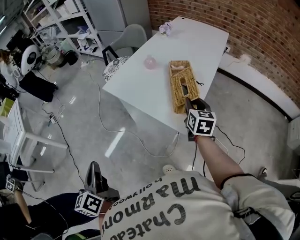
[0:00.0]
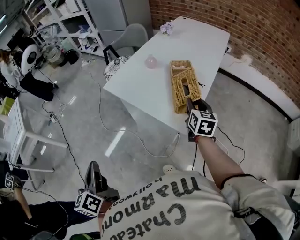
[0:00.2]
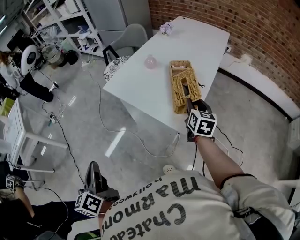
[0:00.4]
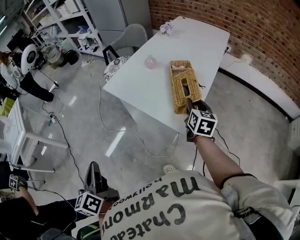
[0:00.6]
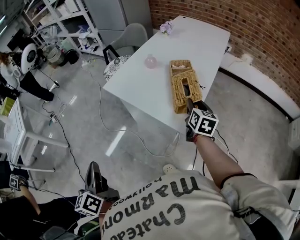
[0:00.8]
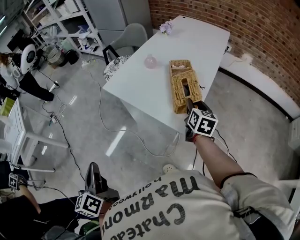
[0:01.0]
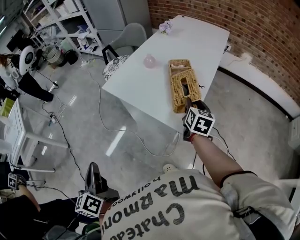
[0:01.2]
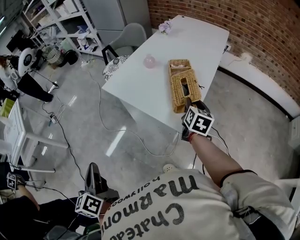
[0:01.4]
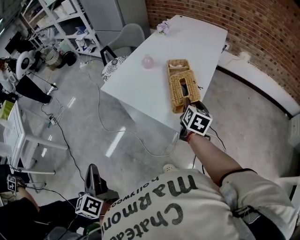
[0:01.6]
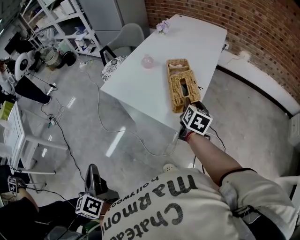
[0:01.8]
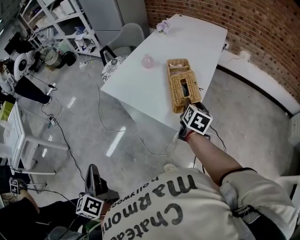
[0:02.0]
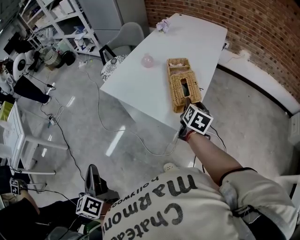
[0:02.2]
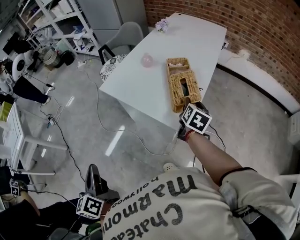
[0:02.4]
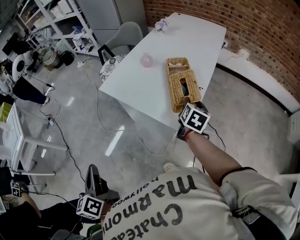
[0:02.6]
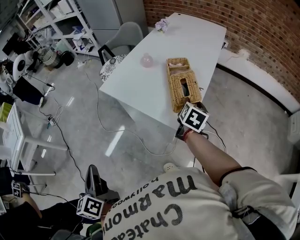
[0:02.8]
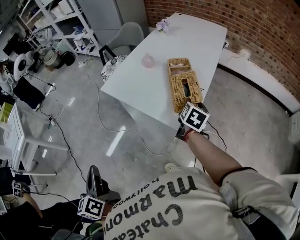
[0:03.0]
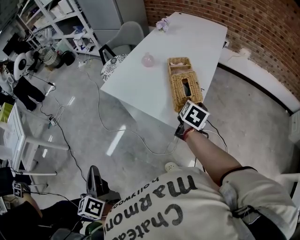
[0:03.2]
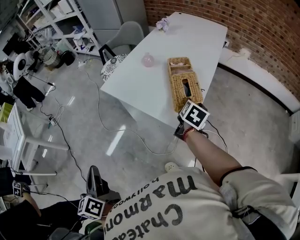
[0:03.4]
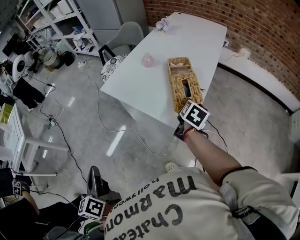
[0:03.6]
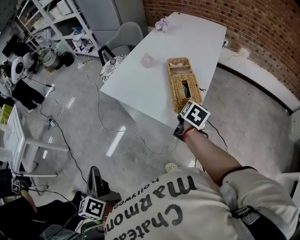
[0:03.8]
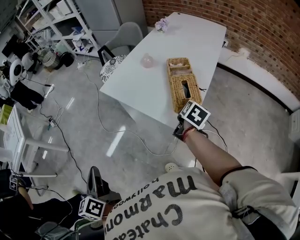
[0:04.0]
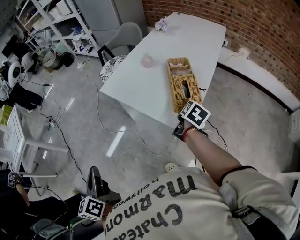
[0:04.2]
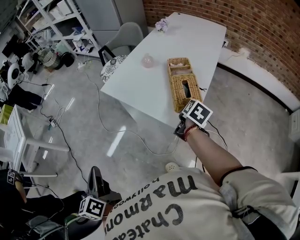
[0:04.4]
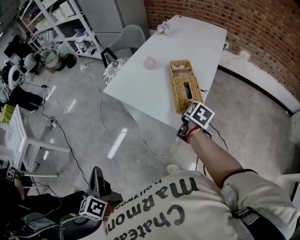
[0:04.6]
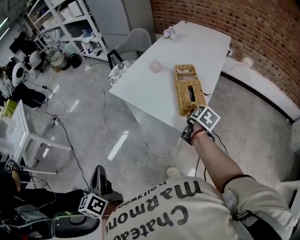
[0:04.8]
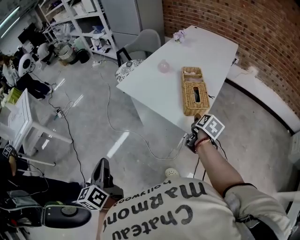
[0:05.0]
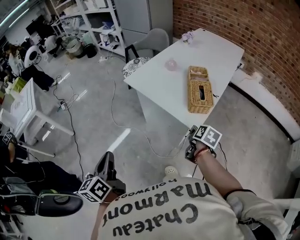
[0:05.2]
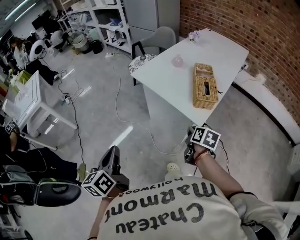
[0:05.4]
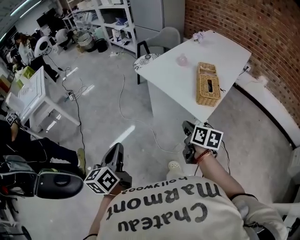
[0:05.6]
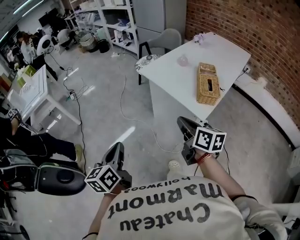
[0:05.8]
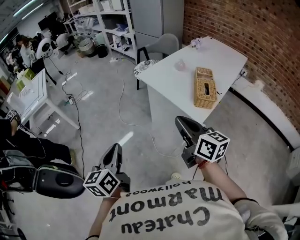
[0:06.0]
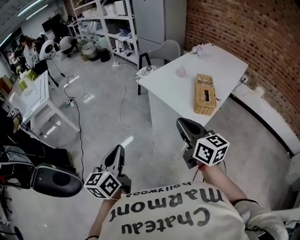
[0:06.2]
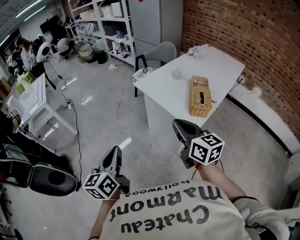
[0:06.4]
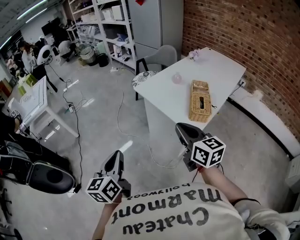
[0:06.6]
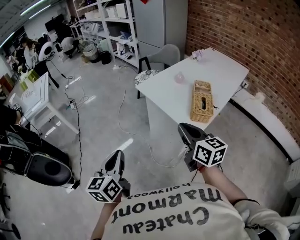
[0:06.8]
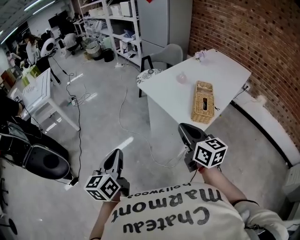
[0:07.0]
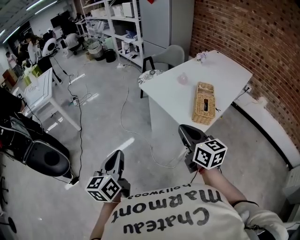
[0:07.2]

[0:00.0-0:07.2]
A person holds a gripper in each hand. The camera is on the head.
0:00.0 to 0:01.4: There are only small adjustments of the grippers.
0:01.4 to 0:02.8: The grippers move only a little.
0:02.8 to 0:04.4: There are only small adjustments of the grippers.
0:04.4 to 0:05.8: The right gripper shifts by approximately 35 cm, swivels about 60 degrees, and closes its fingers. Meanwhile the left gripper ends up some 15 cm from where it was.
0:05.8 to 0:07.2: The left gripper moves some 5 cm, while the right gripper is displaced upward by approximately 5 cm, and swivels some 20 degrees.

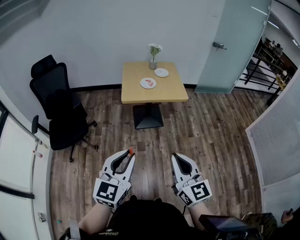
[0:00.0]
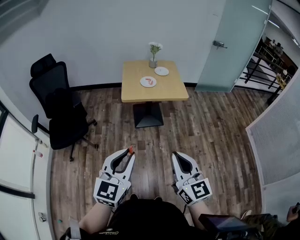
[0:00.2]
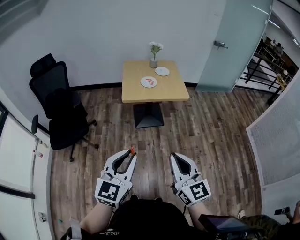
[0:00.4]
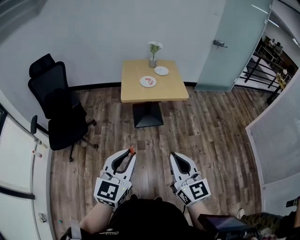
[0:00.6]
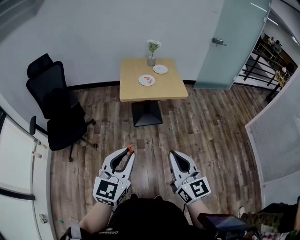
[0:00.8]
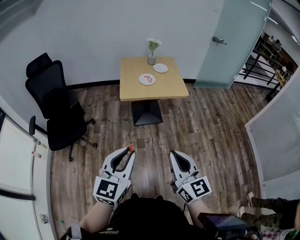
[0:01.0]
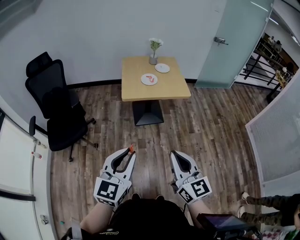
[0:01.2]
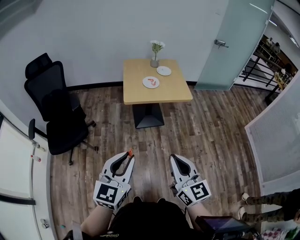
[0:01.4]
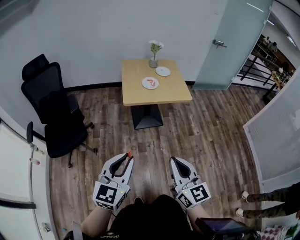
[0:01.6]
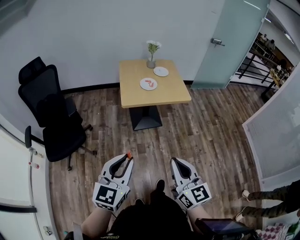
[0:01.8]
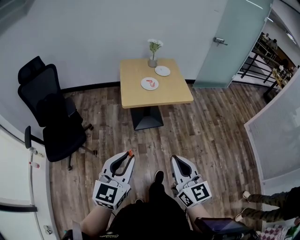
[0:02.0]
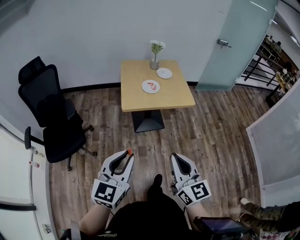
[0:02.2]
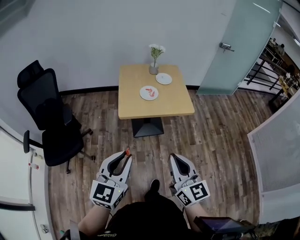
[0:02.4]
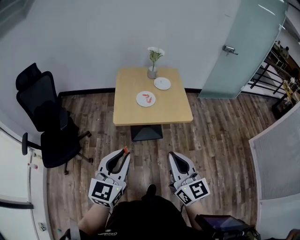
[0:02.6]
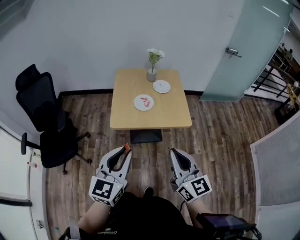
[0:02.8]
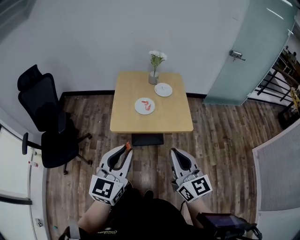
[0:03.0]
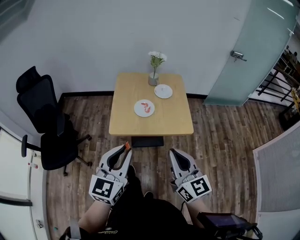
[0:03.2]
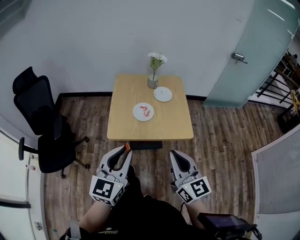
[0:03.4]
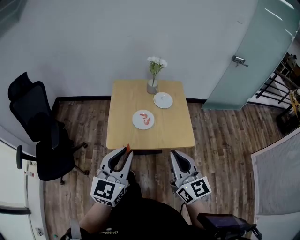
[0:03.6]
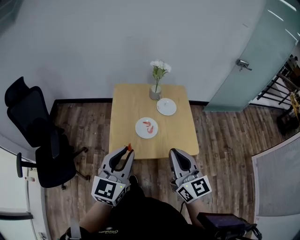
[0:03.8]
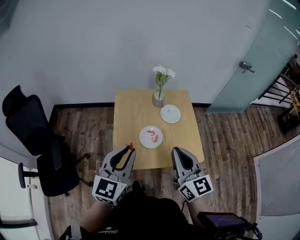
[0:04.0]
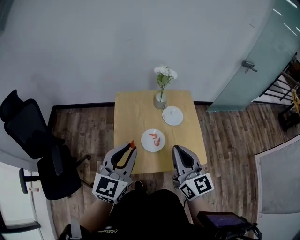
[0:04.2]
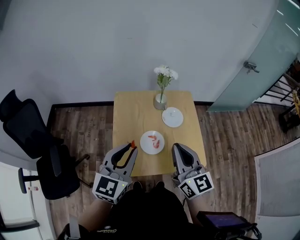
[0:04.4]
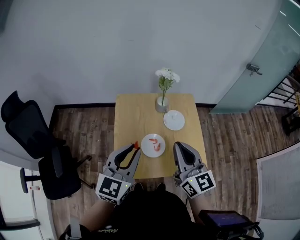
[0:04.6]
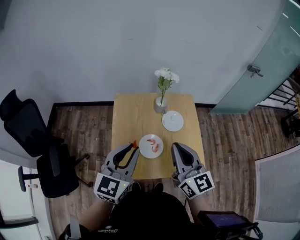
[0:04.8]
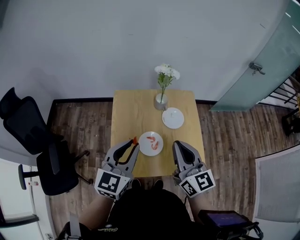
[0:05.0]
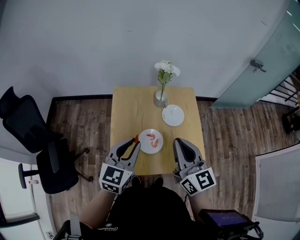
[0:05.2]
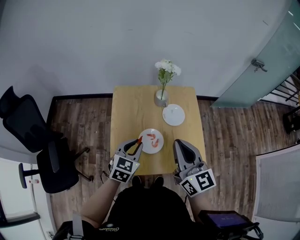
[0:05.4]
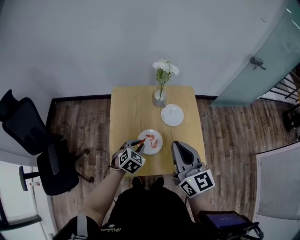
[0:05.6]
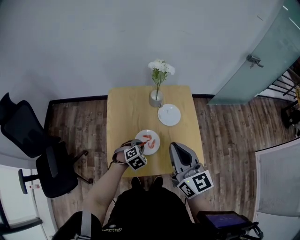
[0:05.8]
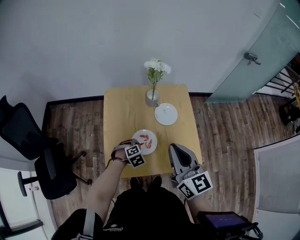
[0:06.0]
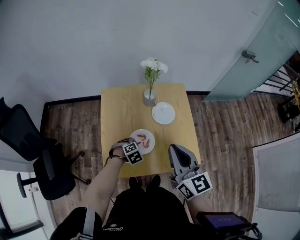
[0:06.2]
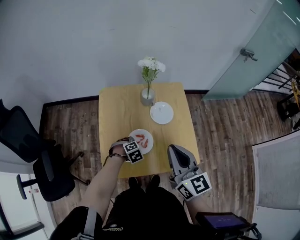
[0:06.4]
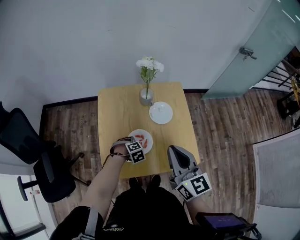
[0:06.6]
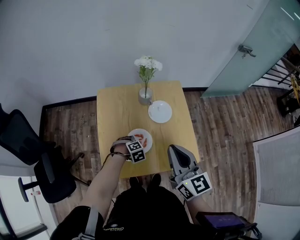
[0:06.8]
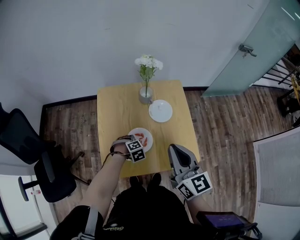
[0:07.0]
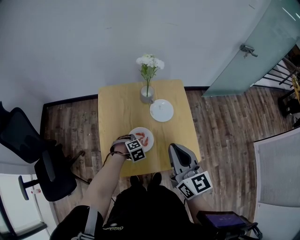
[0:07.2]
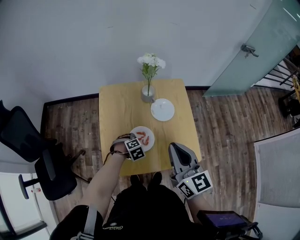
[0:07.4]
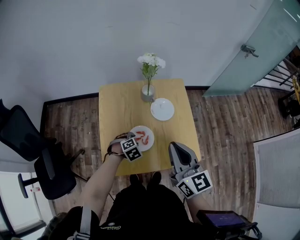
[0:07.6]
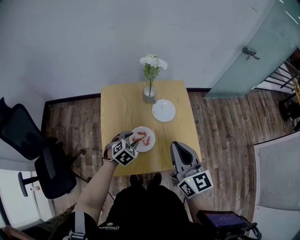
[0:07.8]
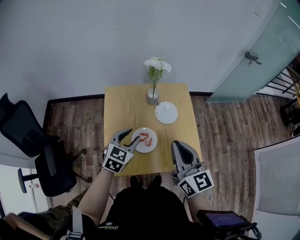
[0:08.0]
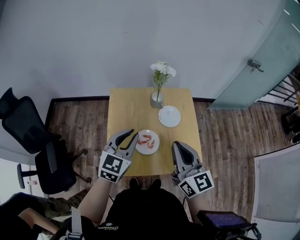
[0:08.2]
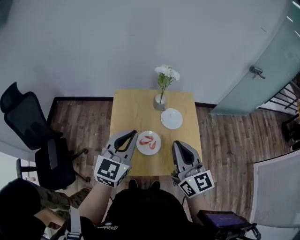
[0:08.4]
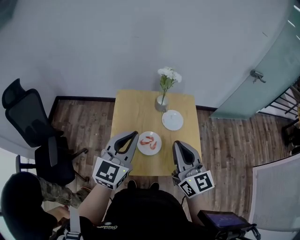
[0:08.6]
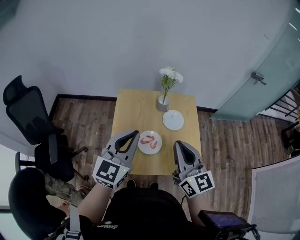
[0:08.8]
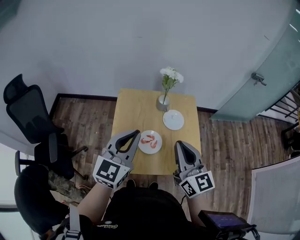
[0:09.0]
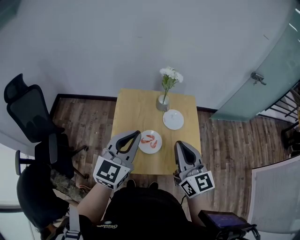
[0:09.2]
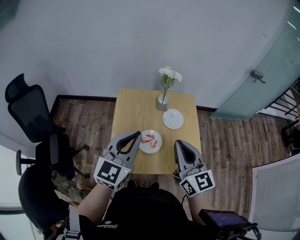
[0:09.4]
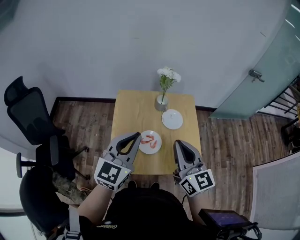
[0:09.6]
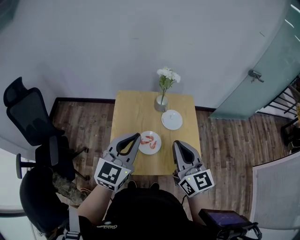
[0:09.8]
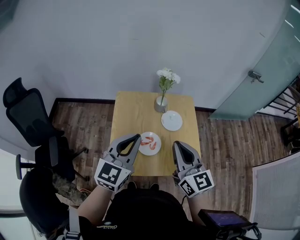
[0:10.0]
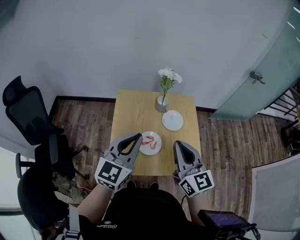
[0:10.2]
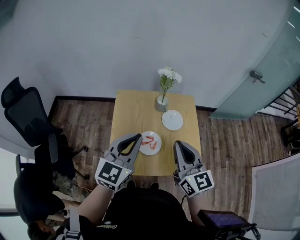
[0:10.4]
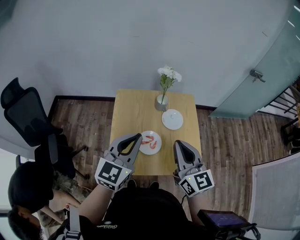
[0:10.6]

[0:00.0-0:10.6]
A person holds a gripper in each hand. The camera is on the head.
0:00.0 to 0:01.6: The two grippers go roughly 10 cm to the left and forward.
0:01.6 to 0:03.0: The two grippers go approximately 30 cm forward and to the right.
0:03.0 to 0:04.6: The two grippers go some 35 cm forward.
0:04.6 to 0:06.0: The left gripper heads downward, covering approximately 35 cm, and angles its fingers downward, by about 60 degrees.
0:06.0 to 0:07.6: The left gripper opens.
0:07.6 to 0:09.0: The left gripper shifts some 40 cm upward, points its fingers about 70 degrees further upward, and closes up. The right gripper changes place by about 5 cm.
0:09.0 to 0:10.6: The grippers stay close to where they were, moving slightly.

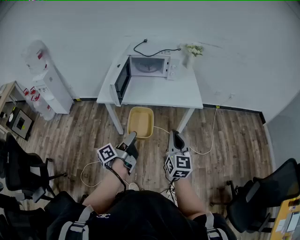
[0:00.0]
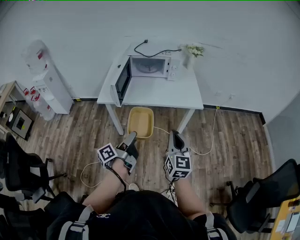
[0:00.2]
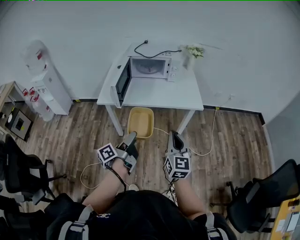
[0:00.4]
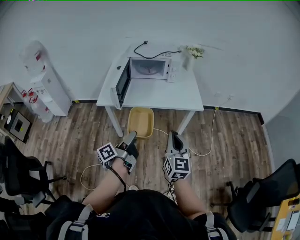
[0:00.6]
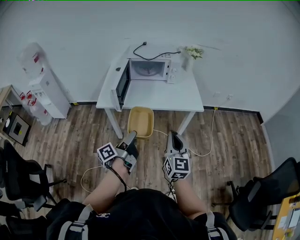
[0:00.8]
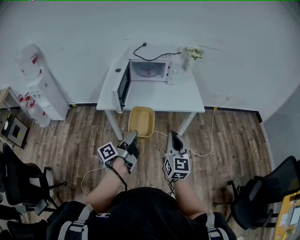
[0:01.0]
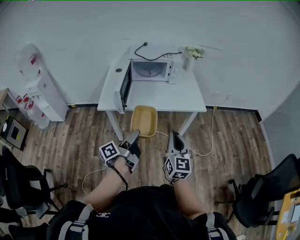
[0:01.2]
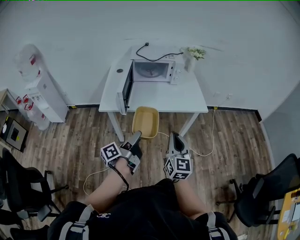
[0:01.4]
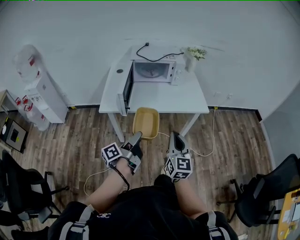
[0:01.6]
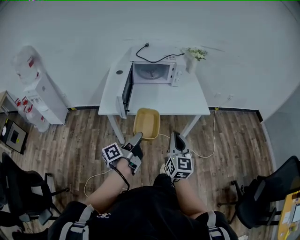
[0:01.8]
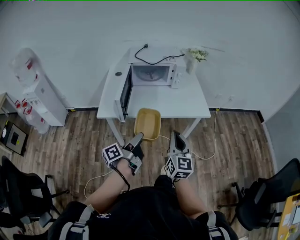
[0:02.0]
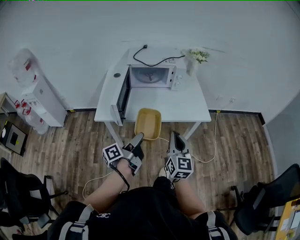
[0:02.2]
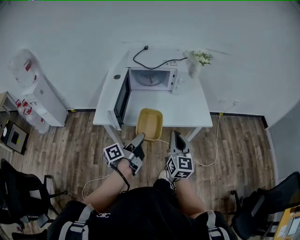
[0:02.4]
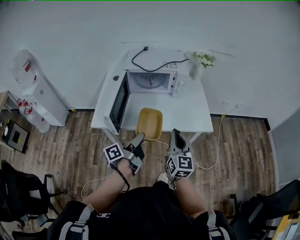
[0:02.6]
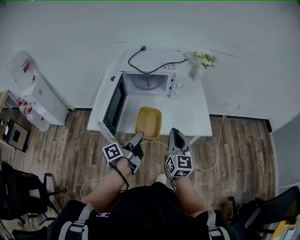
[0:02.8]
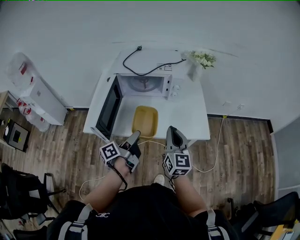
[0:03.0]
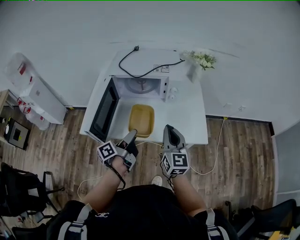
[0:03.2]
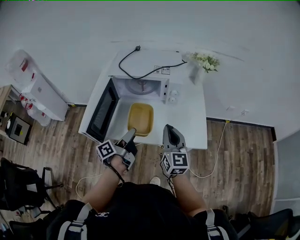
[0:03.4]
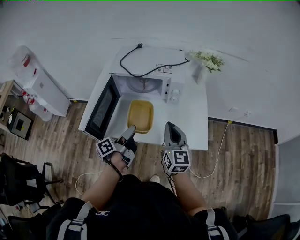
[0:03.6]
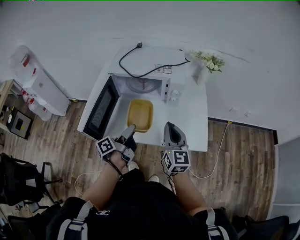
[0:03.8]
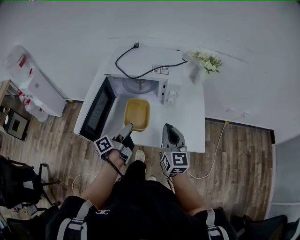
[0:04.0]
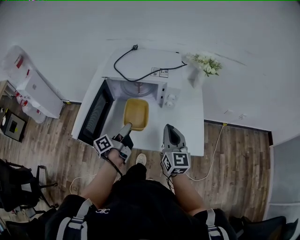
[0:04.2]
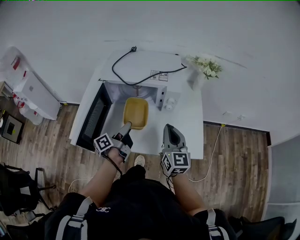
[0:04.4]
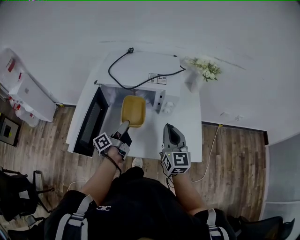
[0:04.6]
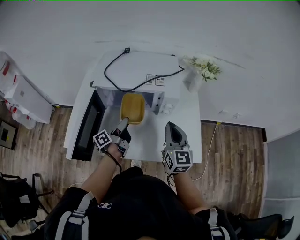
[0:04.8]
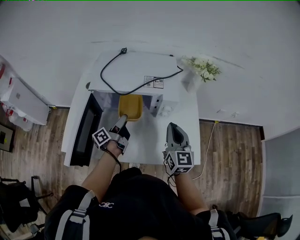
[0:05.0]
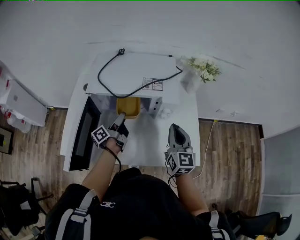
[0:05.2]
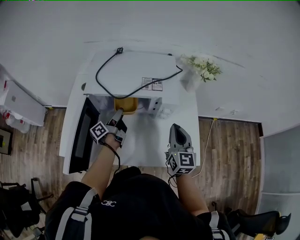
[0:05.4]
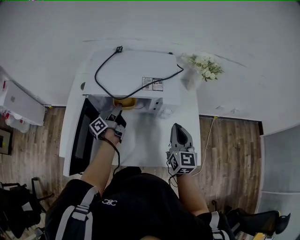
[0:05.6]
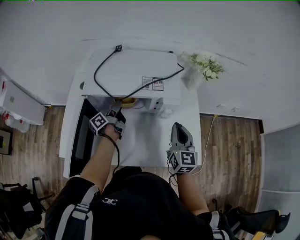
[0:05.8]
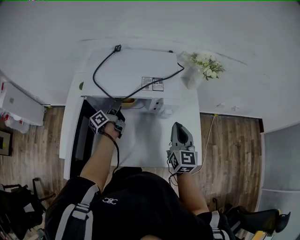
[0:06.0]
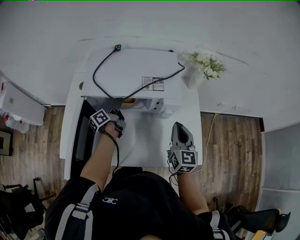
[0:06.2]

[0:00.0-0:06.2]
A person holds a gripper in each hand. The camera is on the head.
0:00.0 to 0:01.6: The left gripper shifts some 10 cm to the left and forward. Meanwhile the right gripper shifts about 10 cm to the left.
0:01.6 to 0:03.2: Both grippers travel together forward, approximately 35 cm.
0:03.2 to 0:04.6: The grippers both shift forward by about 15 cm.
0:04.6 to 0:06.2: The right gripper goes about 10 cm forward. Meanwhile the left gripper travels forward by about 20 cm.
